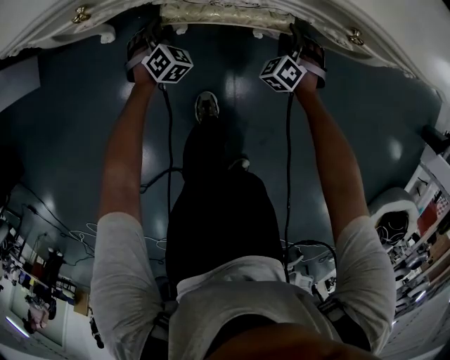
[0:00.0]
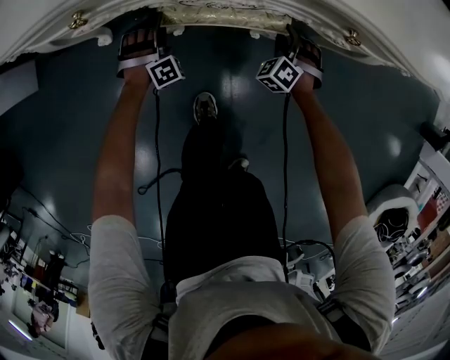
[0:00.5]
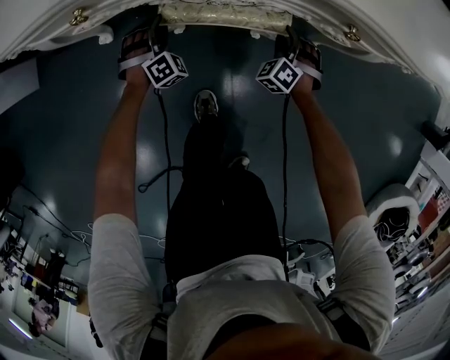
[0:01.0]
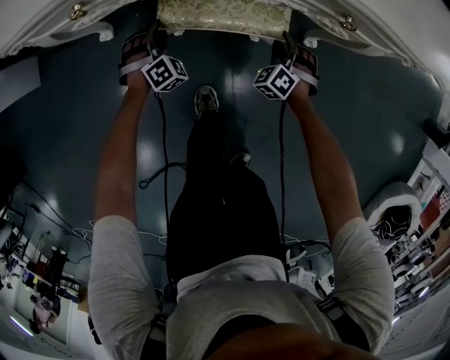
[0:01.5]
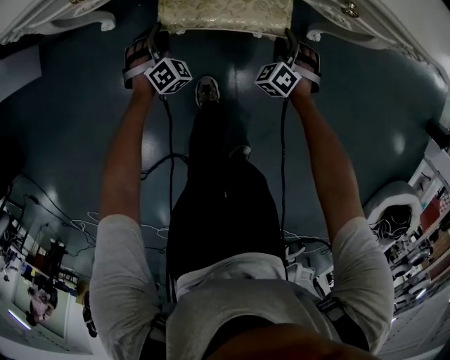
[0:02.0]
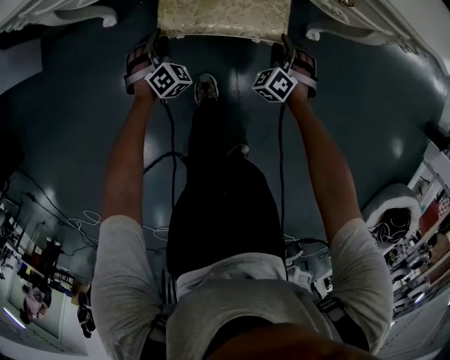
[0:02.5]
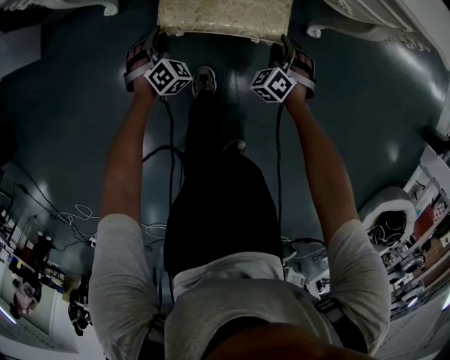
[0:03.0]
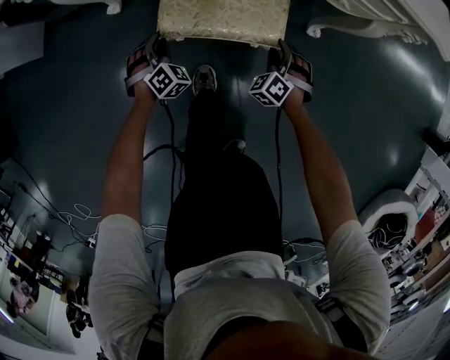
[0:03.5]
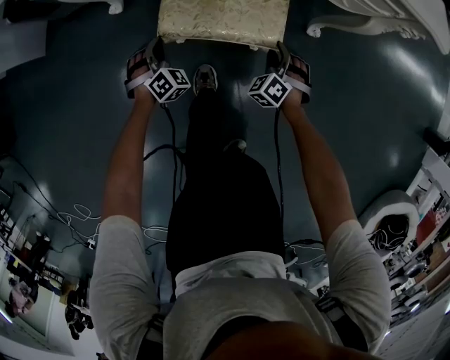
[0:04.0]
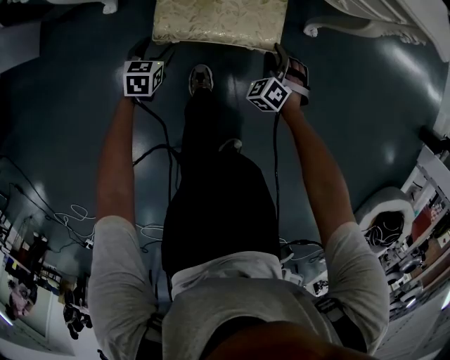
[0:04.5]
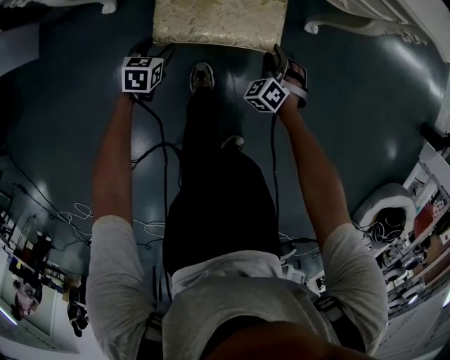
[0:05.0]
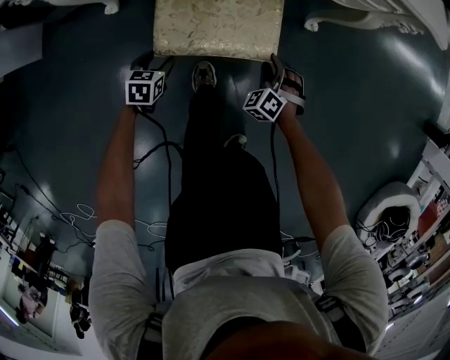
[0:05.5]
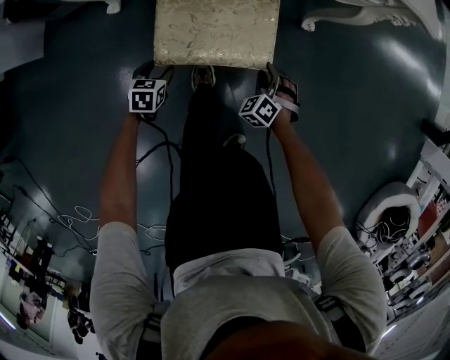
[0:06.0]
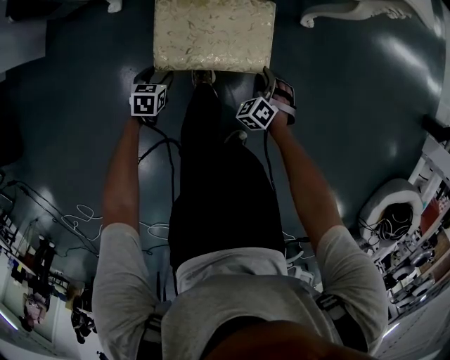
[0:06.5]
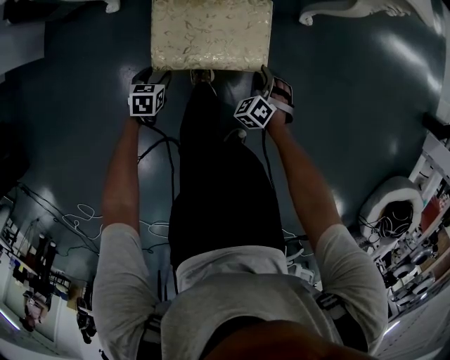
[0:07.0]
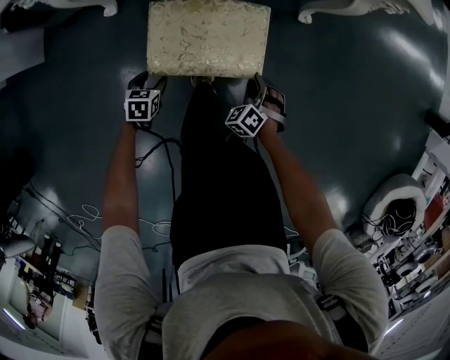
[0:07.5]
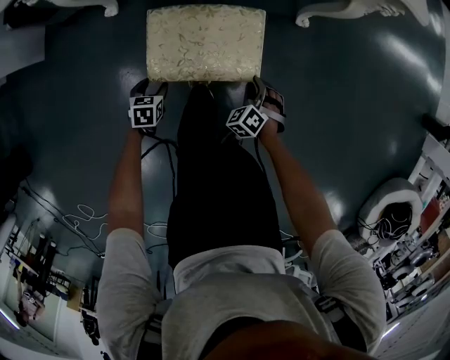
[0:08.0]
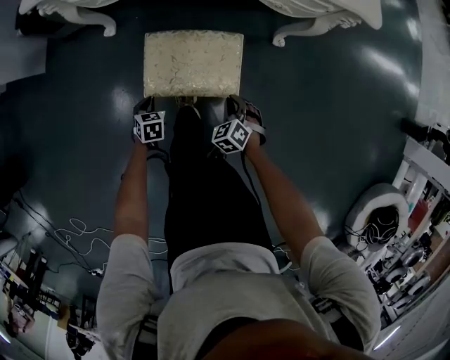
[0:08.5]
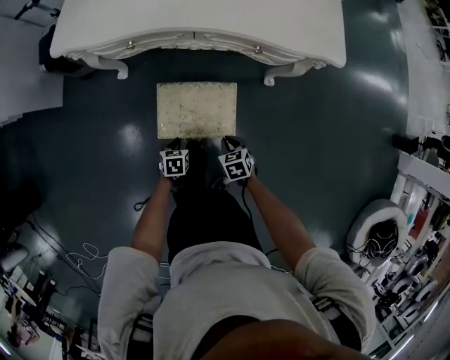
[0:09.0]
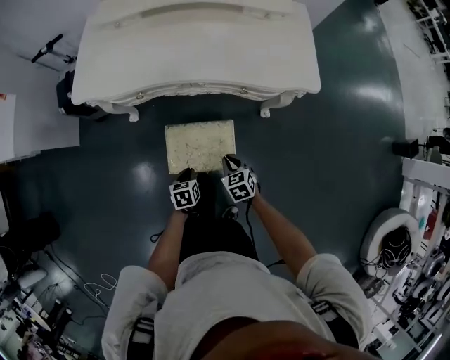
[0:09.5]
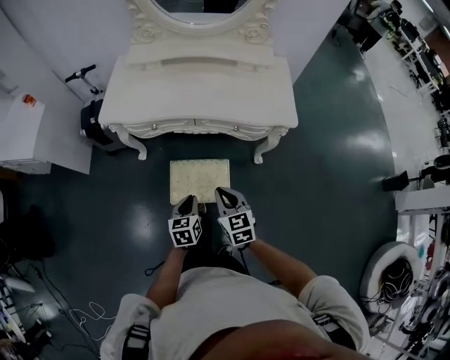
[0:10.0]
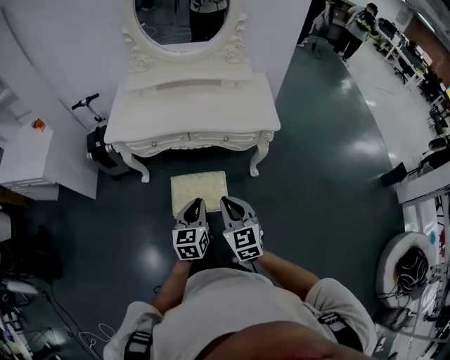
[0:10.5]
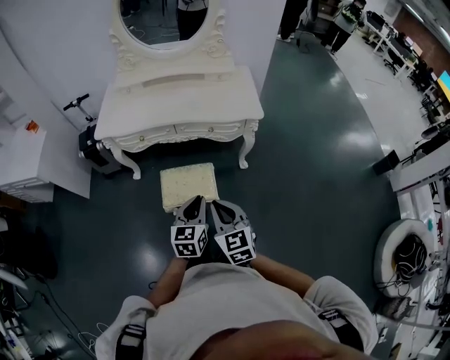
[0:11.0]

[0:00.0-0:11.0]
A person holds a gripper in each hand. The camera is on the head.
0:00.0 to 0:02.0: Both grippers travel together backward, approximately 5 cm. The left gripper opens, then closes once more.
0:02.0 to 0:03.5: The grippers both shift backward by approximately 10 cm.
0:03.5 to 0:05.5: Both grippers travel together backward, approximately 10 cm. The left gripper rotates around the line of its fingers by approximately 50 degrees, counterclockwise from behind, and opens.
0:05.5 to 0:07.5: The grippers both shift backward by approximately 5 cm.
0:07.5 to 0:09.0: Both grippers move upward, some 15 cm. The right gripper rotates some 40 degrees. The left gripper closes its fingers.
0:09.0 to 0:11.0: Both grippers move upward, roughly 50 cm. The right gripper tilts its fingers some 40 degrees upward, while the left gripper tilts its fingers some 40 degrees upward.

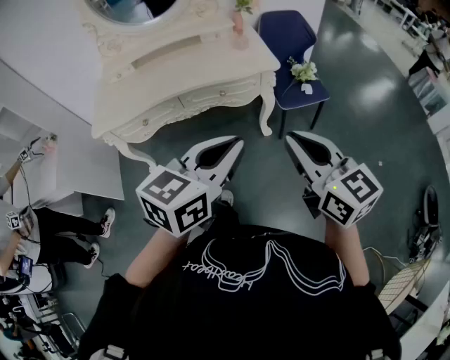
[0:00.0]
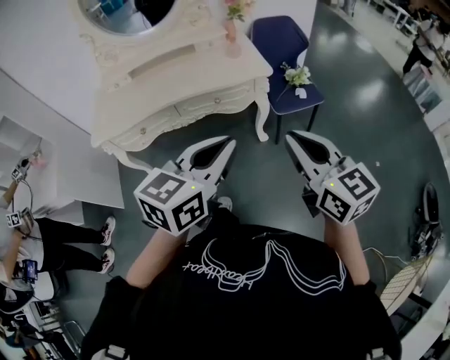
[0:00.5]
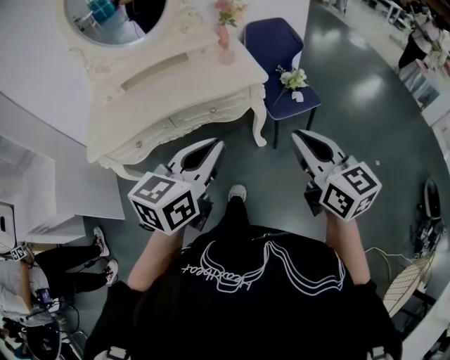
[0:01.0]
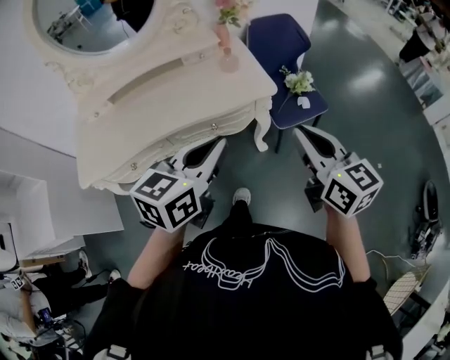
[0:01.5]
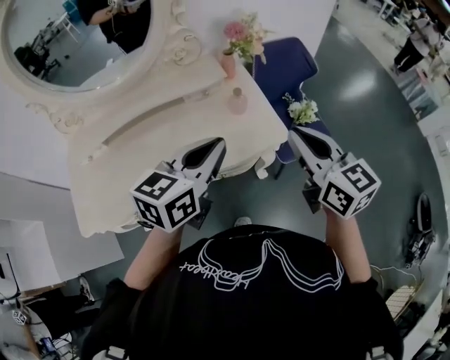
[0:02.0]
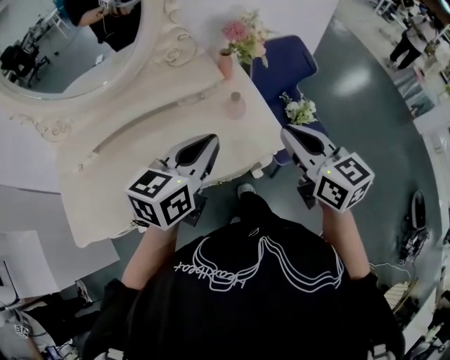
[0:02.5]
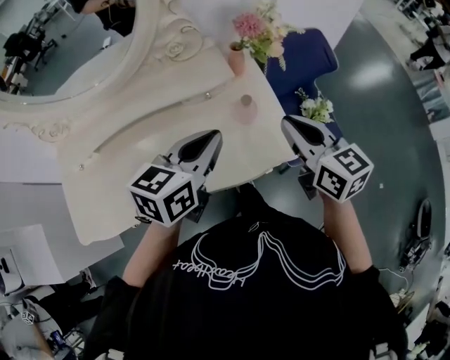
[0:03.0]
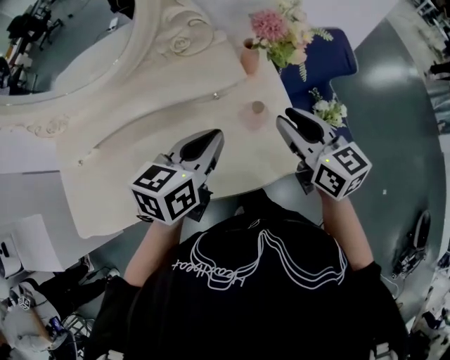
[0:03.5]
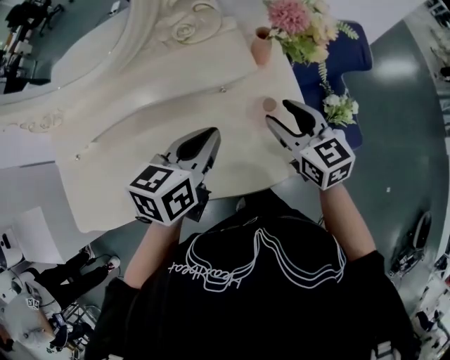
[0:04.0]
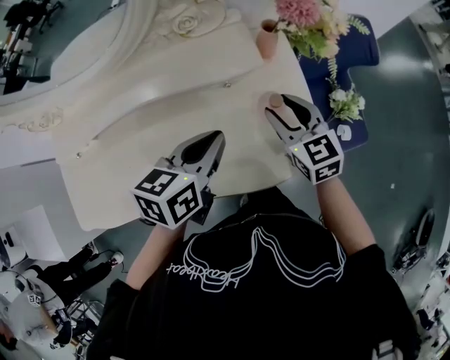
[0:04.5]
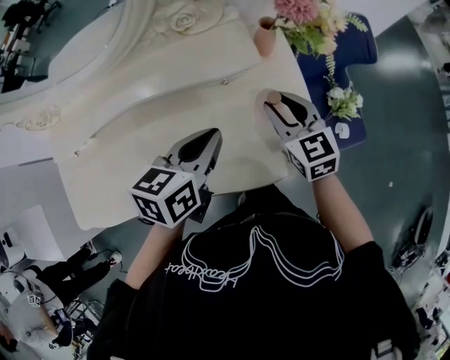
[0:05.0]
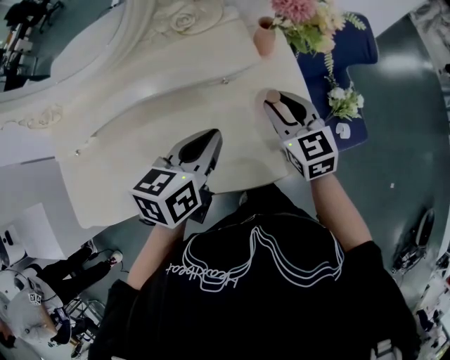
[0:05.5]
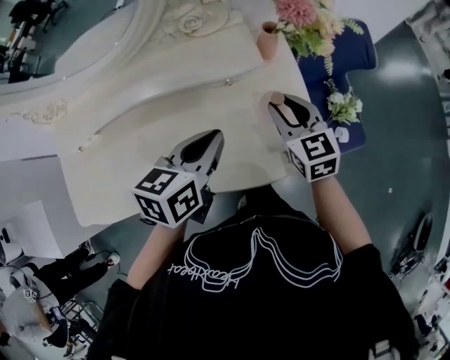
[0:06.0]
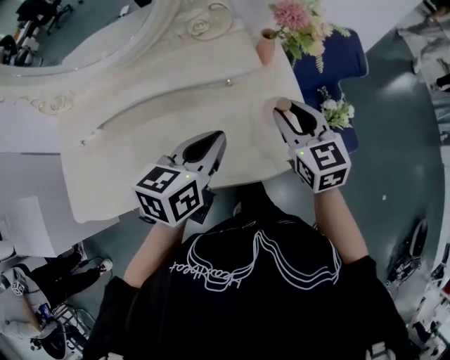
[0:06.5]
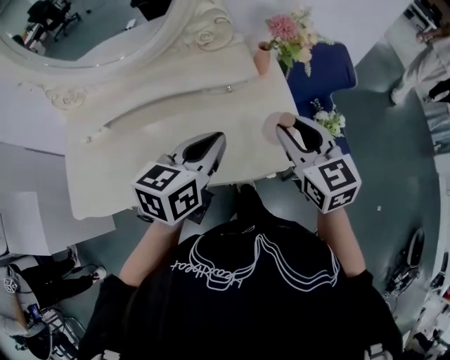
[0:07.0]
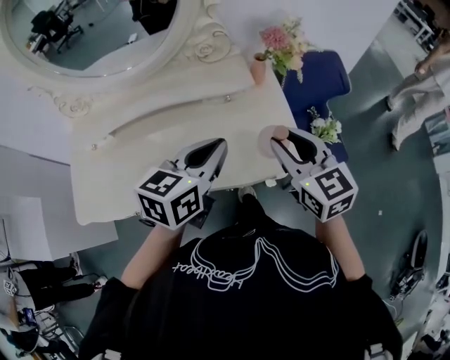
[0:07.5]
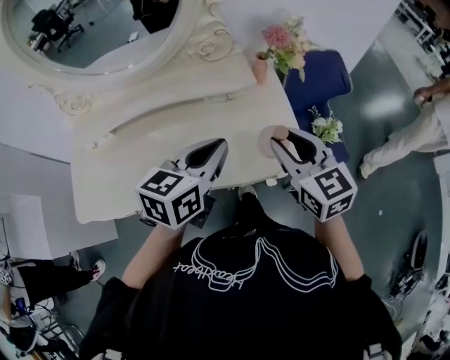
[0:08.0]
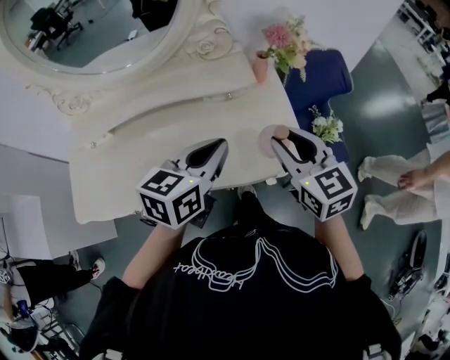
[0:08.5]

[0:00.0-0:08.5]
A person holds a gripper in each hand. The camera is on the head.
0:00.0 to 0:02.0: The two grippers go about 40 cm forward.
0:02.0 to 0:04.0: The two grippers go approximately 25 cm forward and downward. The right gripper opens; the left gripper turns by some 20 degrees.
0:04.0 to 0:06.5: The left gripper shifts about 5 cm backward. The right gripper ends up approximately 5 cm from where it was, and closes.
0:06.5 to 0:08.5: The right gripper shifts some 10 cm backward and upward. Meanwhile the left gripper shifts roughly 5 cm upward.

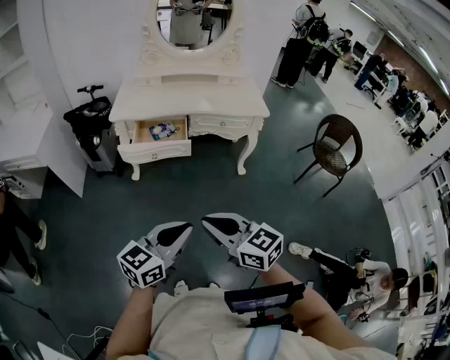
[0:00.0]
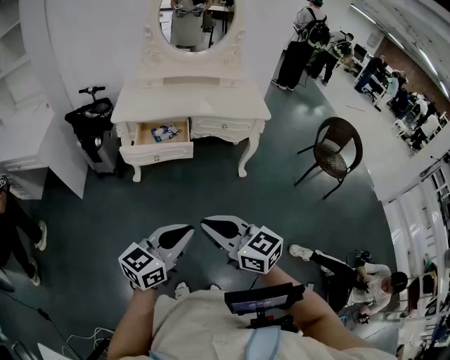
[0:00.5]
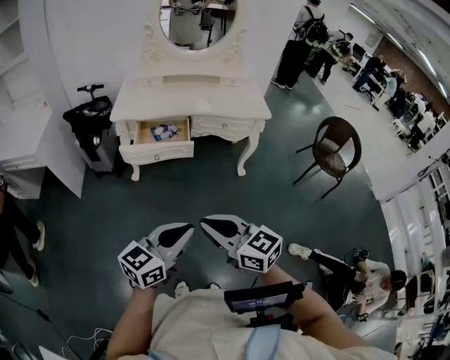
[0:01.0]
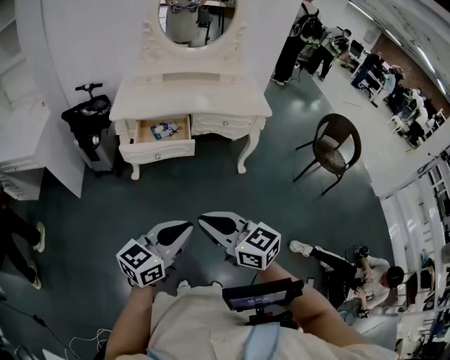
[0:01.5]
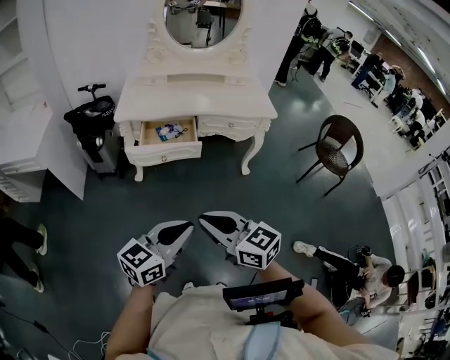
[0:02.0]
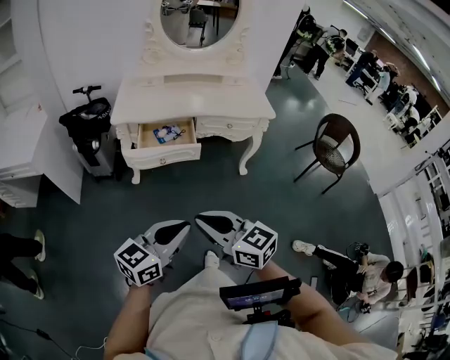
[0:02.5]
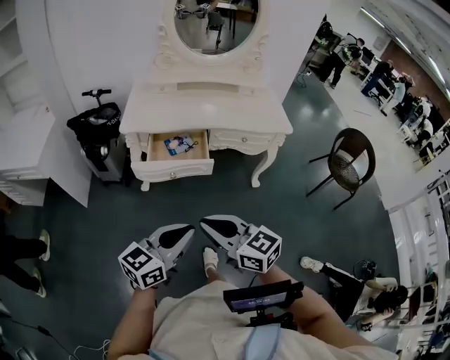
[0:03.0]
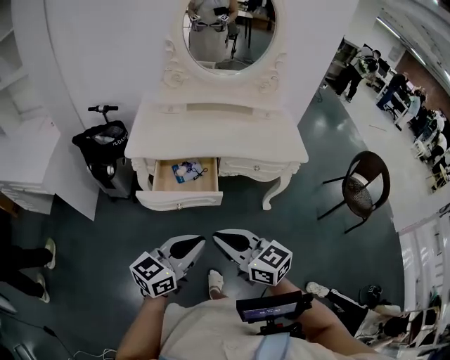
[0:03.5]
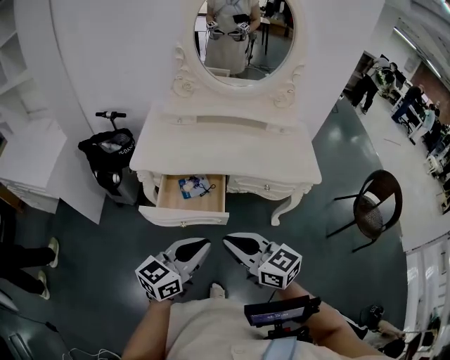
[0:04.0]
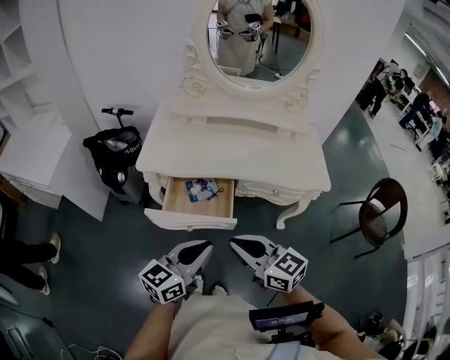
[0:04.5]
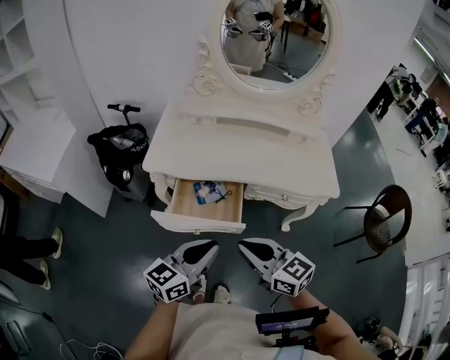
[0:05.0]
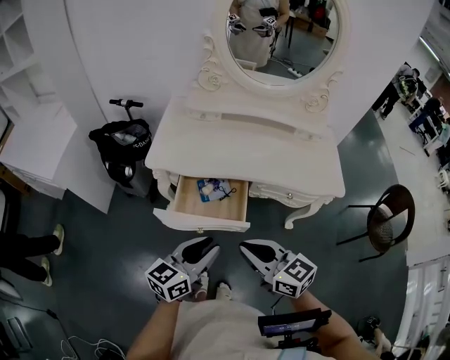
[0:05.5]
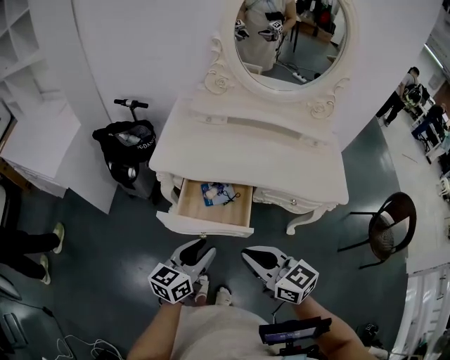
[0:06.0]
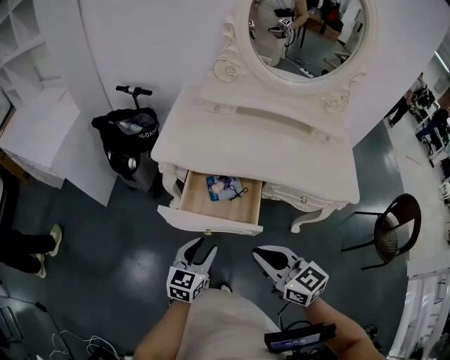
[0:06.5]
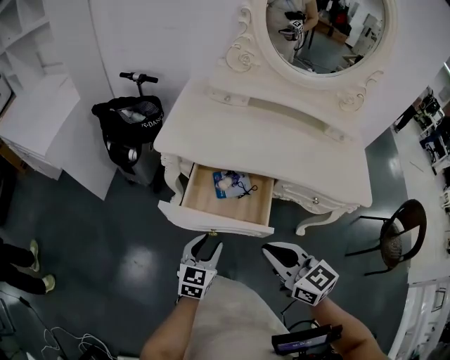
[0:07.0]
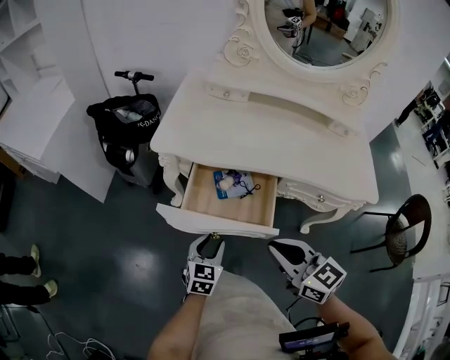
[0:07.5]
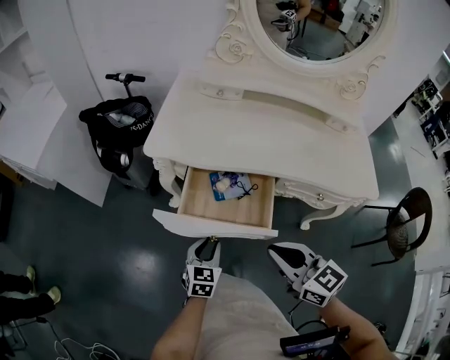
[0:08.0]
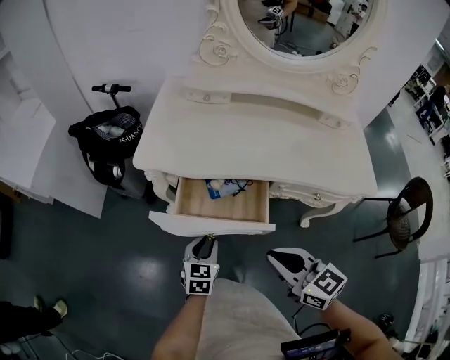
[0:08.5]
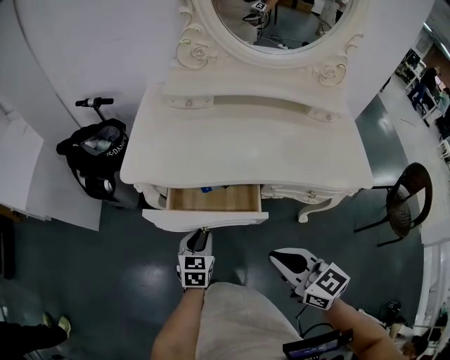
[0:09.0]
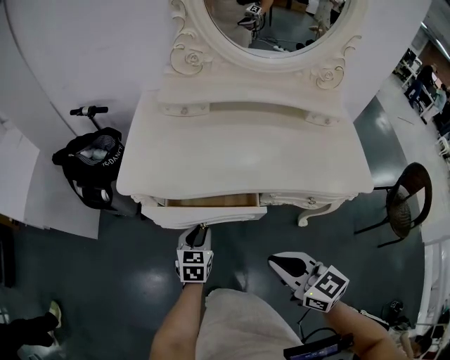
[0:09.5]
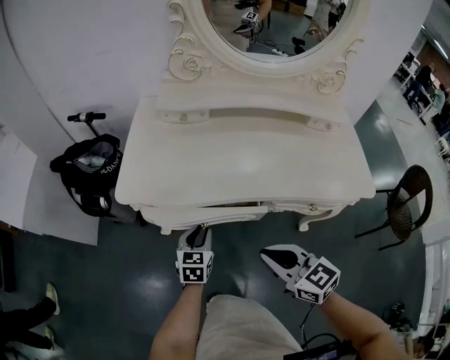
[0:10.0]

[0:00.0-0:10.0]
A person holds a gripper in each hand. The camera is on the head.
0:00.0 to 0:02.0: Both grippers travel together to the left, approximately 5 cm.
0:02.0 to 0:04.0: Both grippers travel together forward, roughly 30 cm.
0:04.0 to 0:06.0: The left gripper travels forward, downward and to the left by some 15 cm, and opens. The right gripper travels forward by roughly 5 cm.
0:06.0 to 0:08.0: The left gripper is displaced downward by some 25 cm, and turns by roughly 30 degrees. Meanwhile the right gripper shifts some 15 cm downward and forward.
0:08.0 to 0:10.0: The left gripper shifts about 15 cm forward; the right gripper shifts roughly 10 cm forward.
